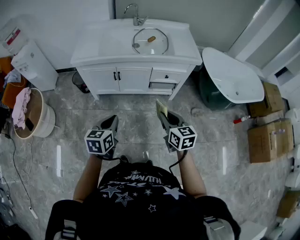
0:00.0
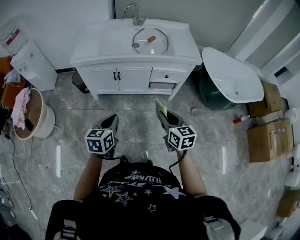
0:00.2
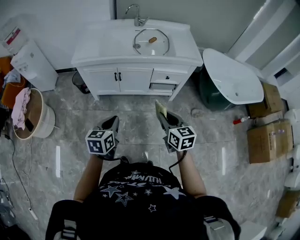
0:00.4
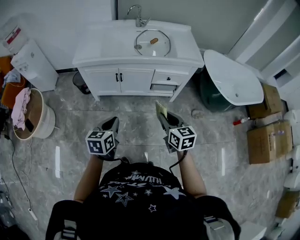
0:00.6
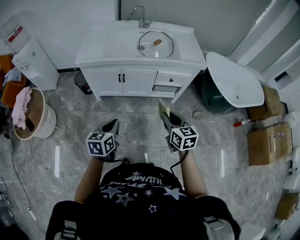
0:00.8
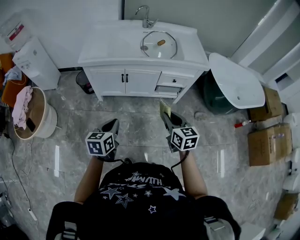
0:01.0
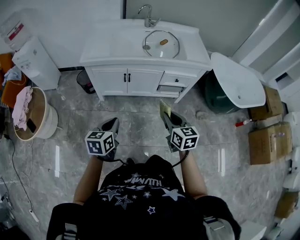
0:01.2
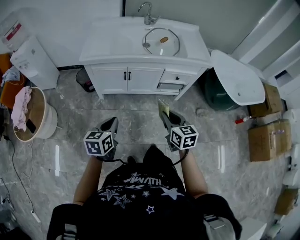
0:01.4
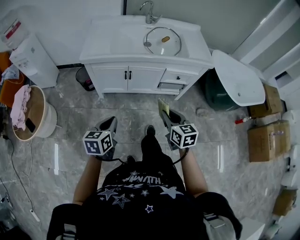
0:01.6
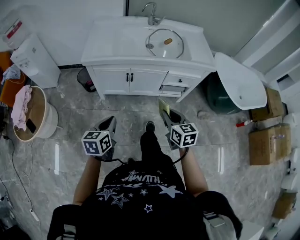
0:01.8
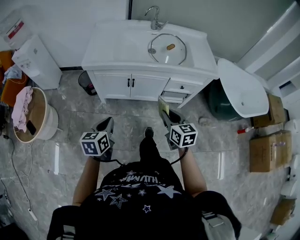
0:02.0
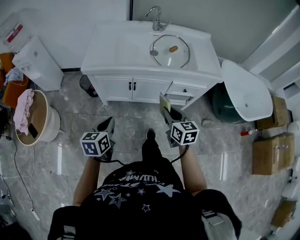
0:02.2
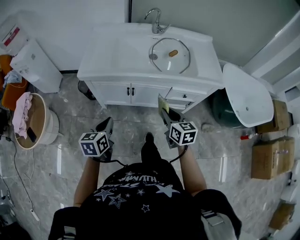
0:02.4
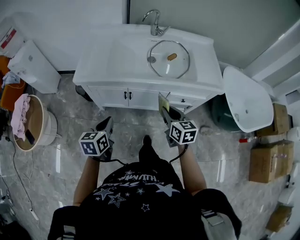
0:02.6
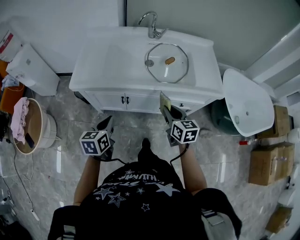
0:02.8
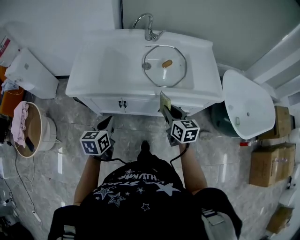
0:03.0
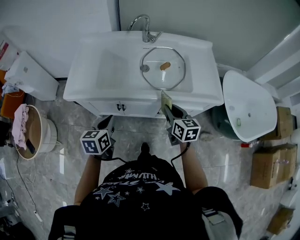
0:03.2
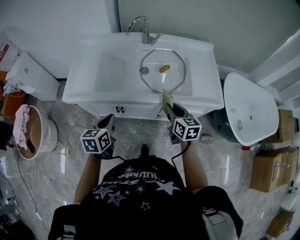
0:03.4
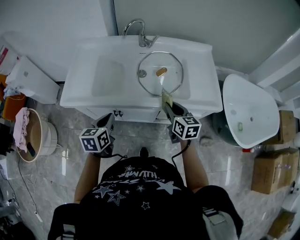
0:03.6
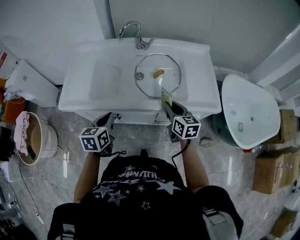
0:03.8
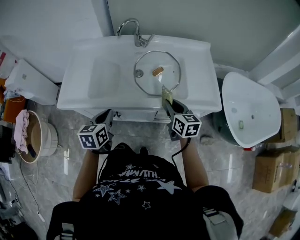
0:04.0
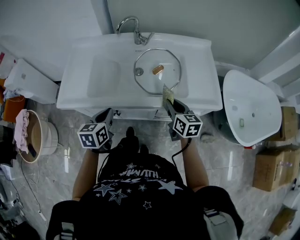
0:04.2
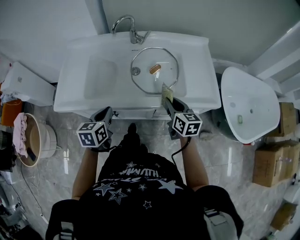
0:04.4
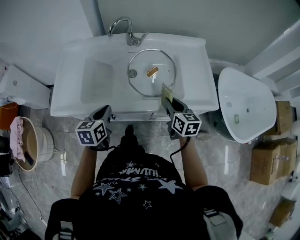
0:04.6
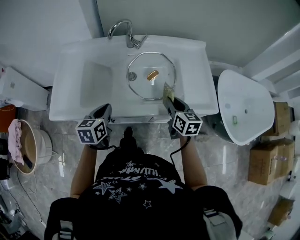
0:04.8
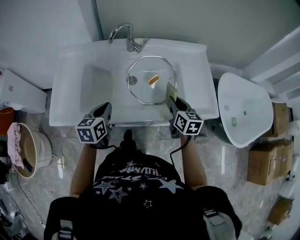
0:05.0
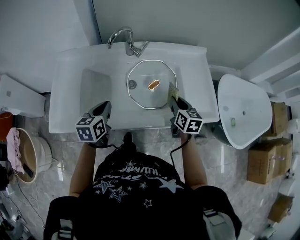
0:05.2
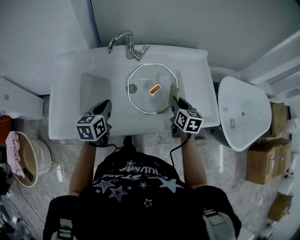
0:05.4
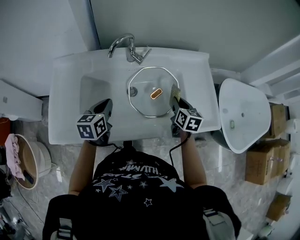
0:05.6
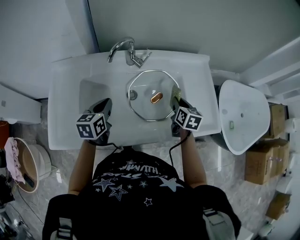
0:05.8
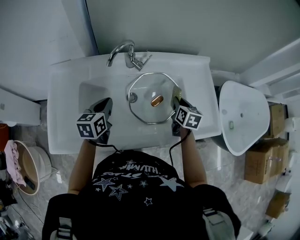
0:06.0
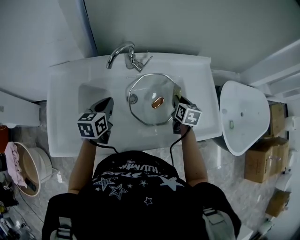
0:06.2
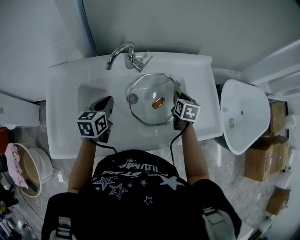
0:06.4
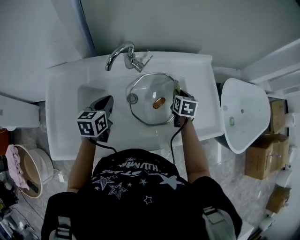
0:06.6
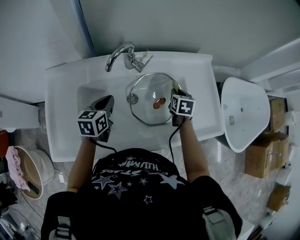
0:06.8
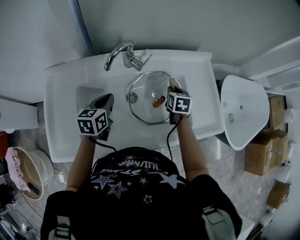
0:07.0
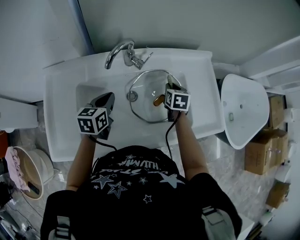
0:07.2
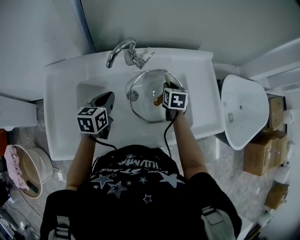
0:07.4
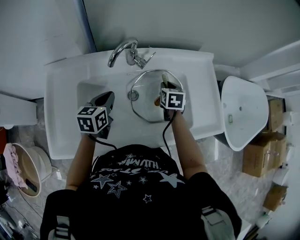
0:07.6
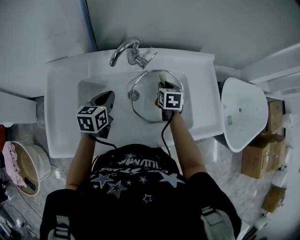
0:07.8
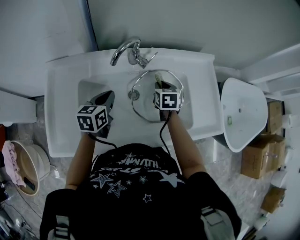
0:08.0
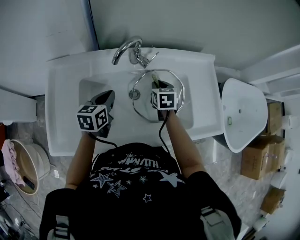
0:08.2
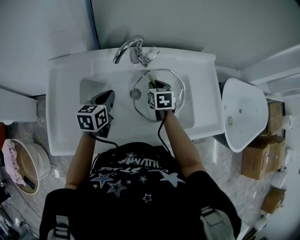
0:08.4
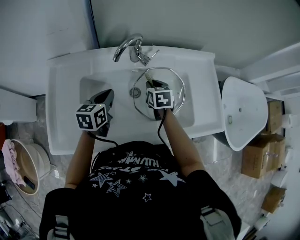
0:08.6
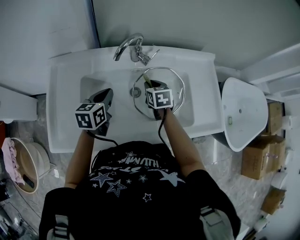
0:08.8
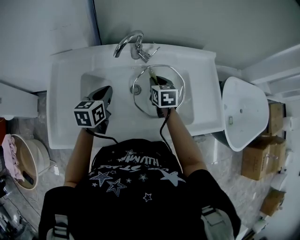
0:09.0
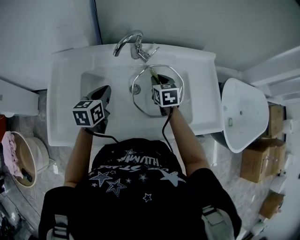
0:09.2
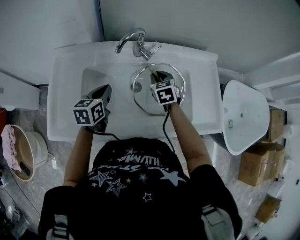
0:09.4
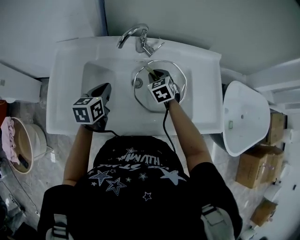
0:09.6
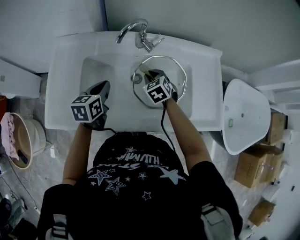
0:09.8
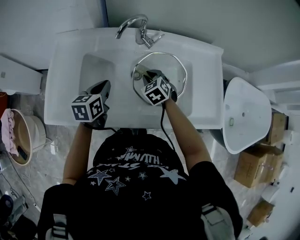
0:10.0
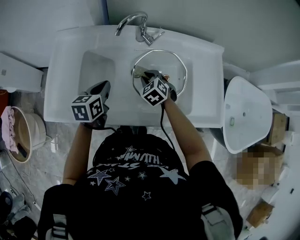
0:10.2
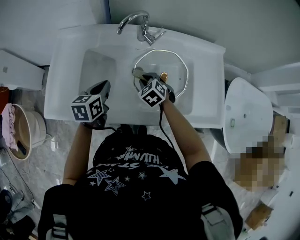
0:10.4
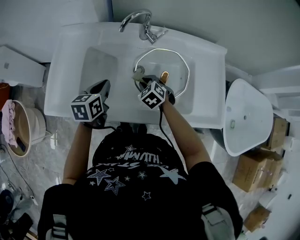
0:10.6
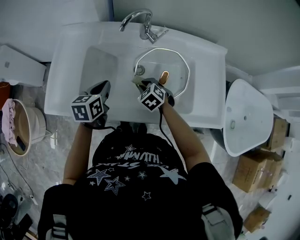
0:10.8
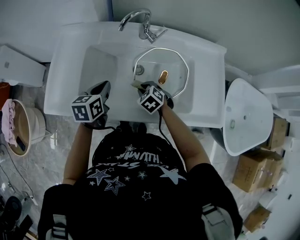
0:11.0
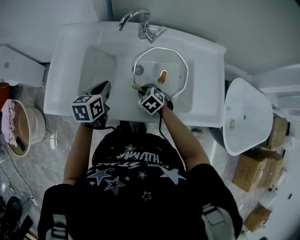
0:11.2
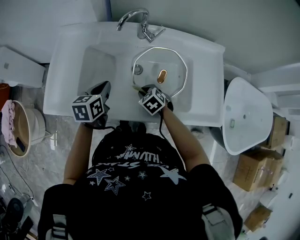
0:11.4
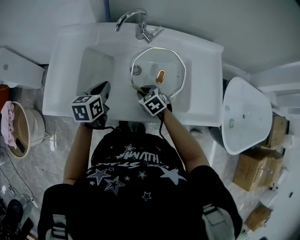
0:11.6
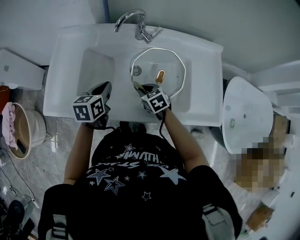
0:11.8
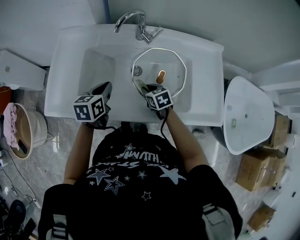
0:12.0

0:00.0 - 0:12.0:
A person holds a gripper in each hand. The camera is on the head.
0:00.0 - 0:01.6: The two grippers go some 10 cm to the left.
0:01.6 - 0:03.0: Both grippers travel together forward, some 30 cm.
0:03.0 - 0:04.4: The grippers both shift forward and to the right by some 15 cm.
0:04.4 - 0:06.0: Both grippers move forward, roughly 25 cm. The right gripper swivels roughly 30 degrees.
0:06.0 - 0:07.6: The right gripper heads to the left and forward, covering roughly 10 cm.
0:07.6 - 0:09.0: The right gripper goes some 10 cm to the left.
0:09.0 - 0:10.4: The left gripper moves backward, about 10 cm. Meanwhile the right gripper goes some 10 cm backward, downward and to the left, and rolls counterclockwise, seen from behind, by approximately 40 degrees.
0:10.4 - 0:12.0: The right gripper travels backward by roughly 5 cm, and swivels approximately 30 degrees.

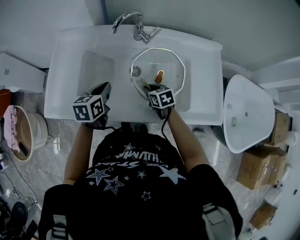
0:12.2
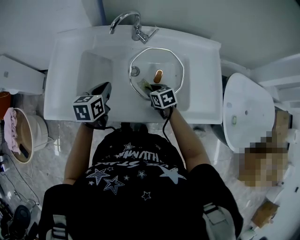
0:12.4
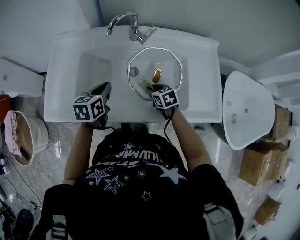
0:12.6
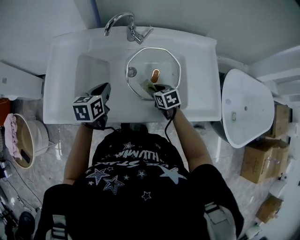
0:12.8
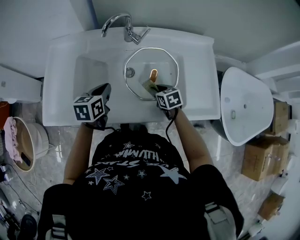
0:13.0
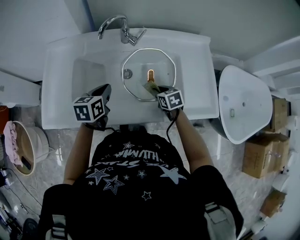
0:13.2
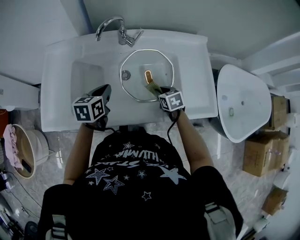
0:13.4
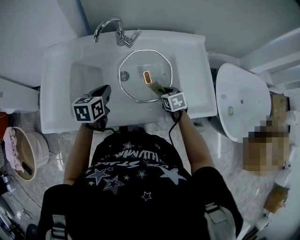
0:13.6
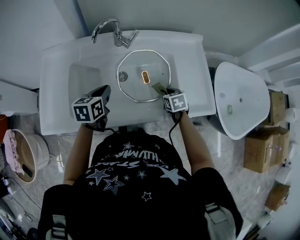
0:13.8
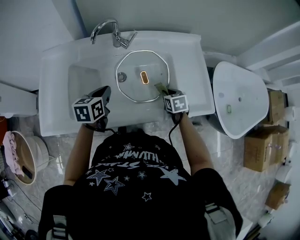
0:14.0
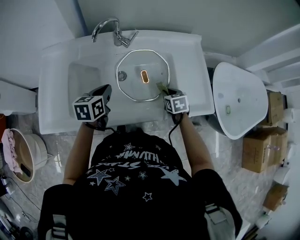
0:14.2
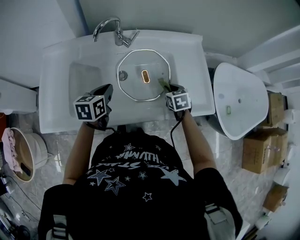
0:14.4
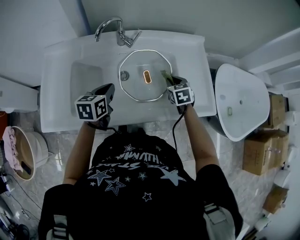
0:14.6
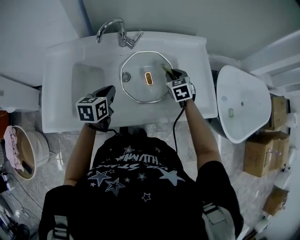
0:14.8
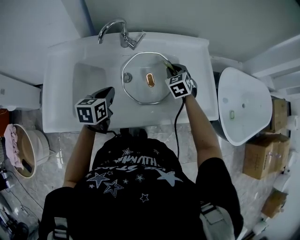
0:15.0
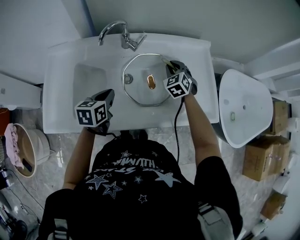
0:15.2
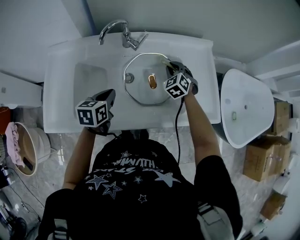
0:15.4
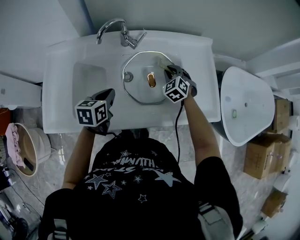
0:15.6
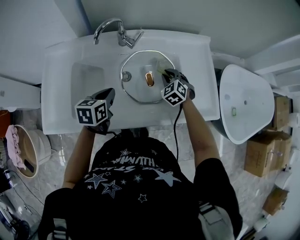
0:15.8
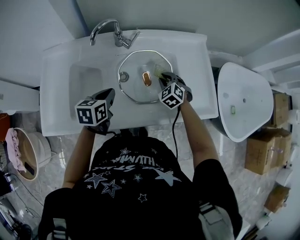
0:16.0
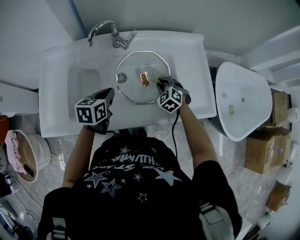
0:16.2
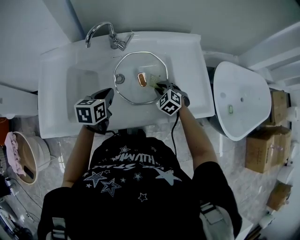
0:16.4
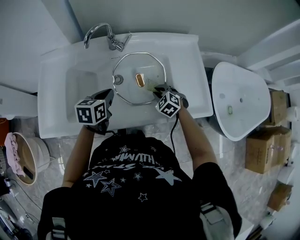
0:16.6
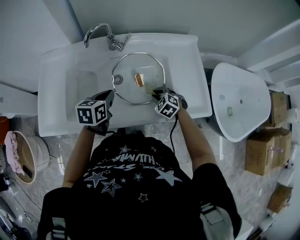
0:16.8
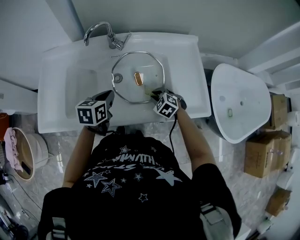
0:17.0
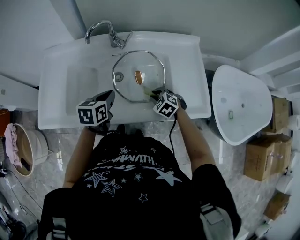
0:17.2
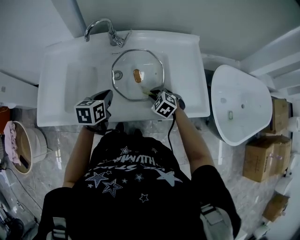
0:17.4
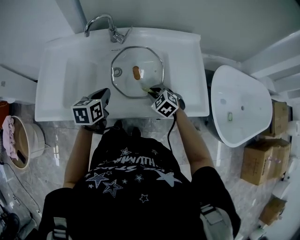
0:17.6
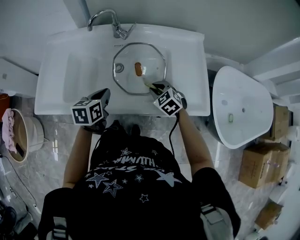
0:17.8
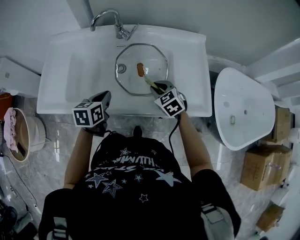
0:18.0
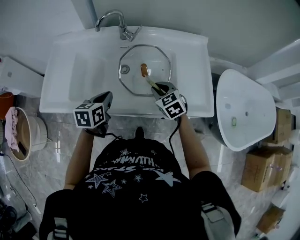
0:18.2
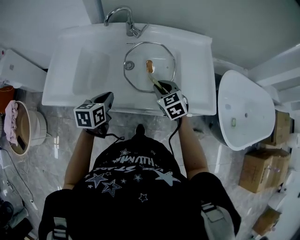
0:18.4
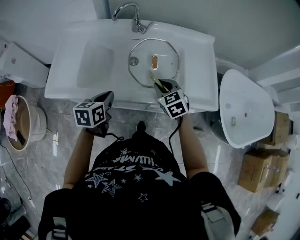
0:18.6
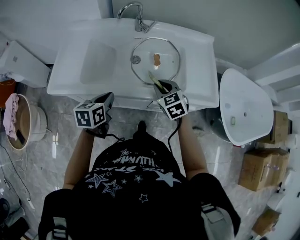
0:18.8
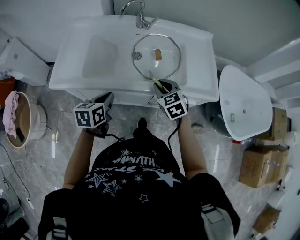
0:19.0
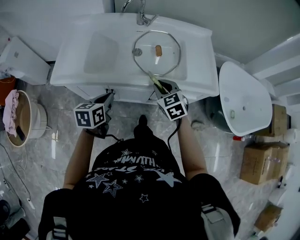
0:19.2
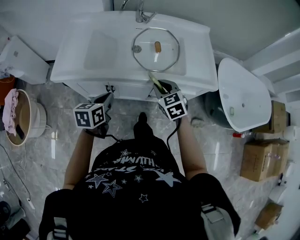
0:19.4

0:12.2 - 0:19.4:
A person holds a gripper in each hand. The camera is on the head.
0:12.2 - 0:13.6: The left gripper moves some 5 cm, while the right gripper is displaced to the right by some 15 cm.
0:13.6 - 0:15.0: The right gripper heads forward and upward, covering roughly 15 cm, and changes its angle by roughly 30 degrees.
0:15.0 - 0:16.6: The right gripper is displaced backward and downward by some 15 cm, and swivels about 30 degrees.
0:16.6 - 0:18.0: The right gripper shifts approximately 5 cm upward. The left gripper heads backward, covering approximately 10 cm.
0:18.0 - 0:19.4: Both grippers travel together backward and to the left, some 20 cm.

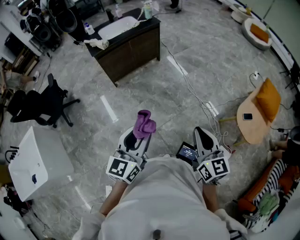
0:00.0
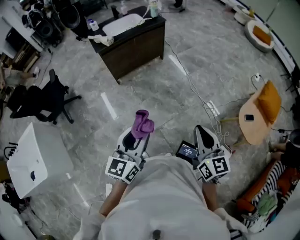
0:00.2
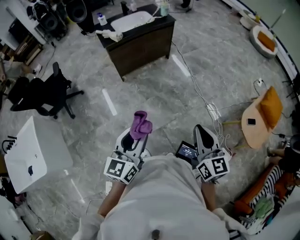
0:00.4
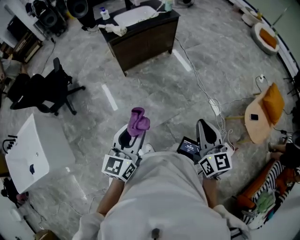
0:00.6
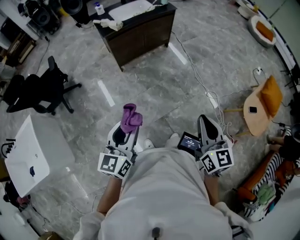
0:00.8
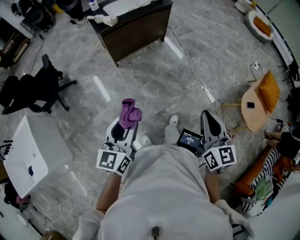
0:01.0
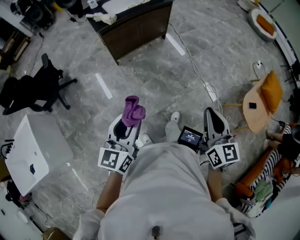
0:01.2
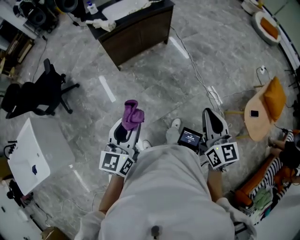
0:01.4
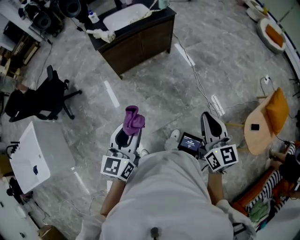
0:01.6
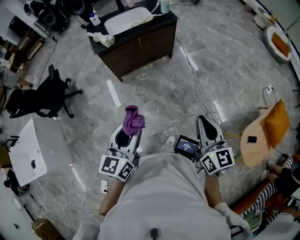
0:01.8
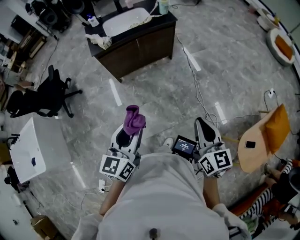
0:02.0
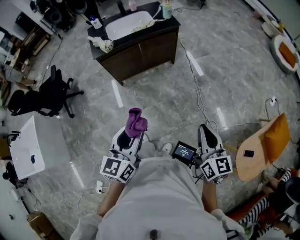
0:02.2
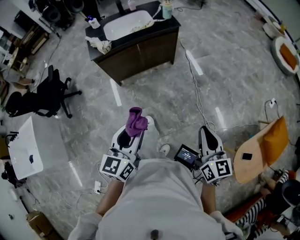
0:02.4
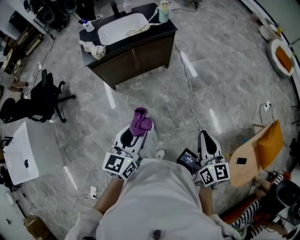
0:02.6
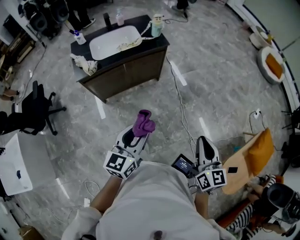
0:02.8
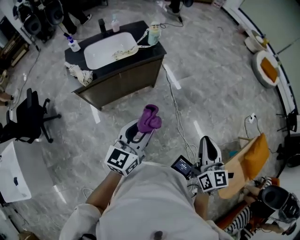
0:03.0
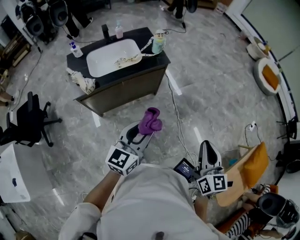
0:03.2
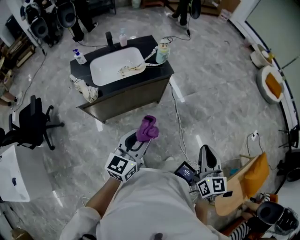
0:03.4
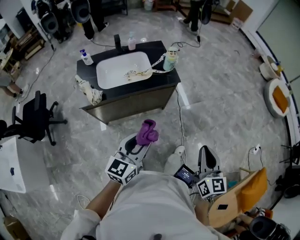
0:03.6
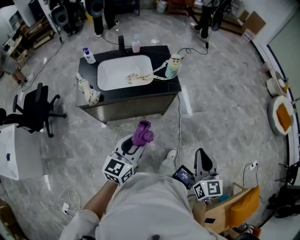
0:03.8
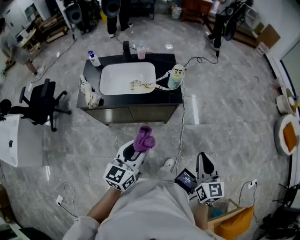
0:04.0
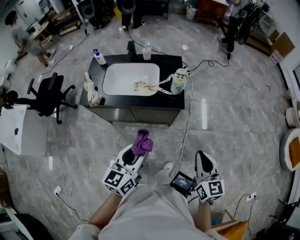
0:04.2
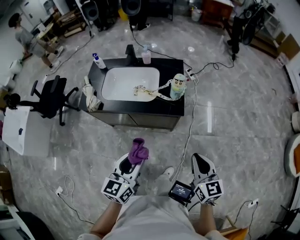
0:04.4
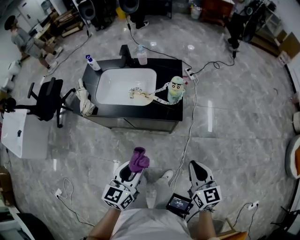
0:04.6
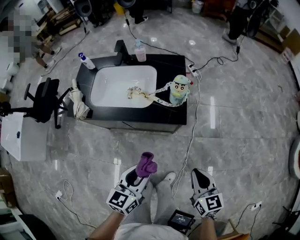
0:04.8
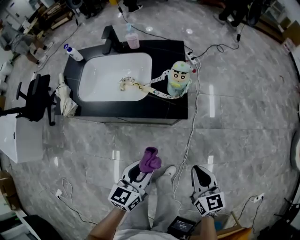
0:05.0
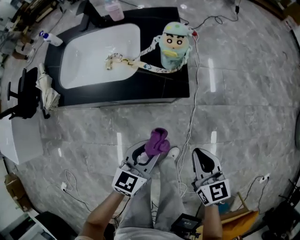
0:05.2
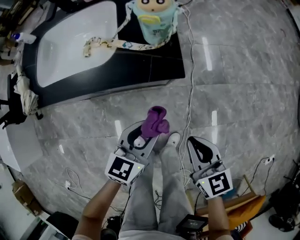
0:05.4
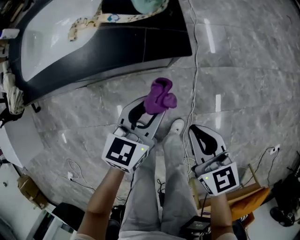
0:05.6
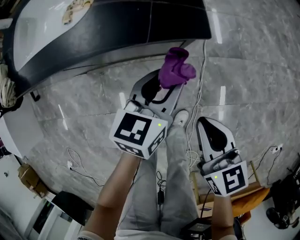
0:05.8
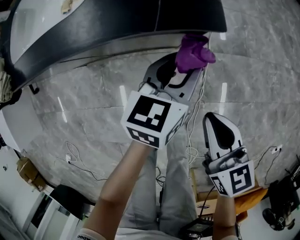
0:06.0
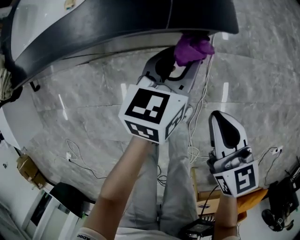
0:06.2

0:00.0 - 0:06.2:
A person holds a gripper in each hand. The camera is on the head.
0:00.0 - 0:01.6: The right gripper heads forward, covering approximately 20 cm. Meanwhile the left gripper moves forward and to the left, some 20 cm.
0:01.6 - 0:03.2: Both grippers travel together forward, about 40 cm.
0:03.2 - 0:04.6: The right gripper ends up about 40 cm from where it was, and changes its angle by about 40 degrees. Meanwhile the left gripper changes place by approximately 30 cm, and turns by about 40 degrees.
0:04.6 - 0:06.2: The right gripper is displaced downward by about 30 cm. Meanwhile the left gripper heads downward and forward, covering roughly 40 cm.
